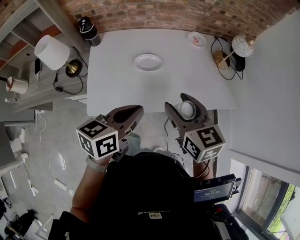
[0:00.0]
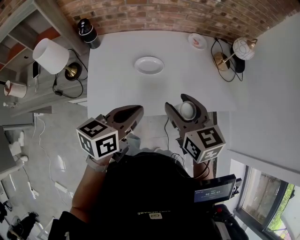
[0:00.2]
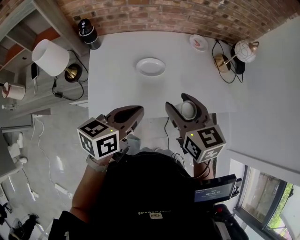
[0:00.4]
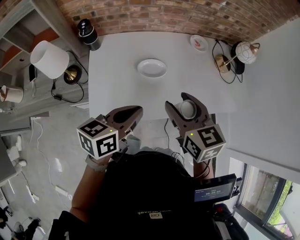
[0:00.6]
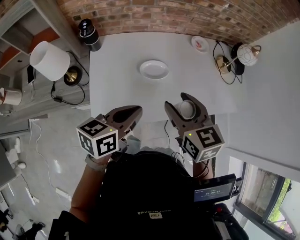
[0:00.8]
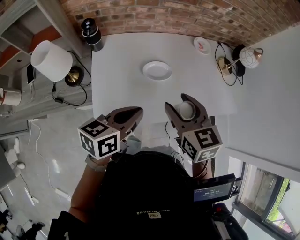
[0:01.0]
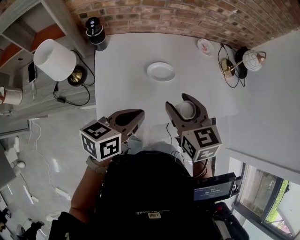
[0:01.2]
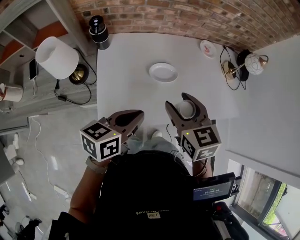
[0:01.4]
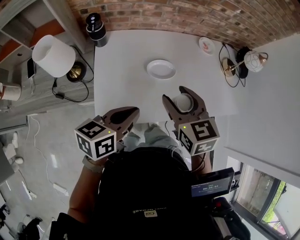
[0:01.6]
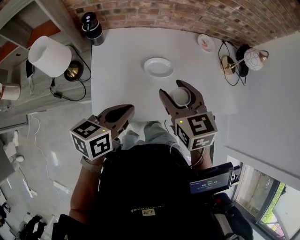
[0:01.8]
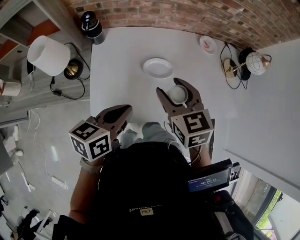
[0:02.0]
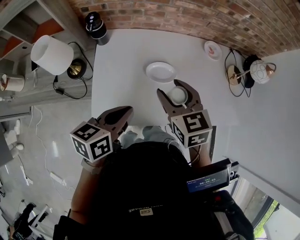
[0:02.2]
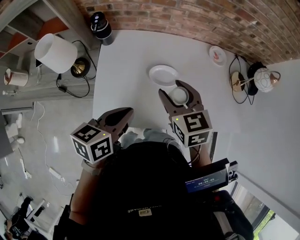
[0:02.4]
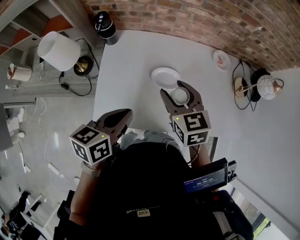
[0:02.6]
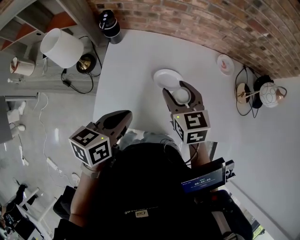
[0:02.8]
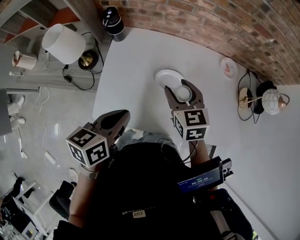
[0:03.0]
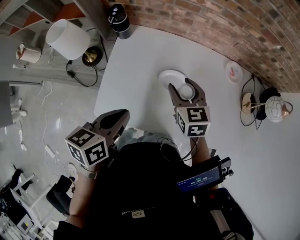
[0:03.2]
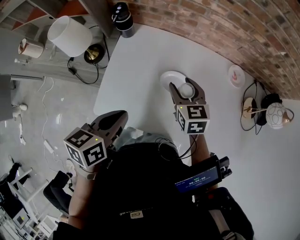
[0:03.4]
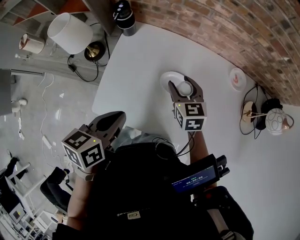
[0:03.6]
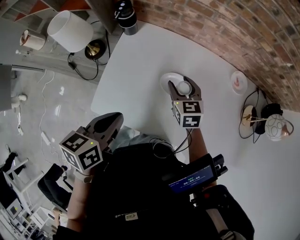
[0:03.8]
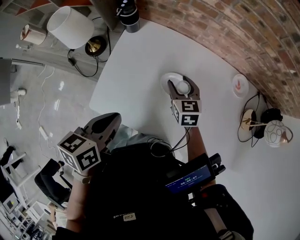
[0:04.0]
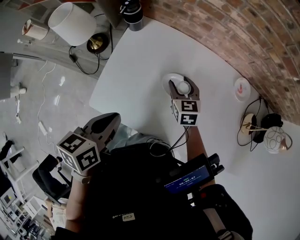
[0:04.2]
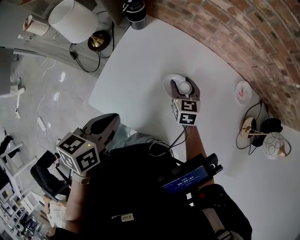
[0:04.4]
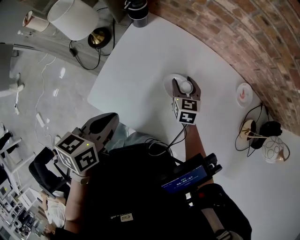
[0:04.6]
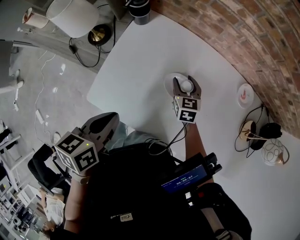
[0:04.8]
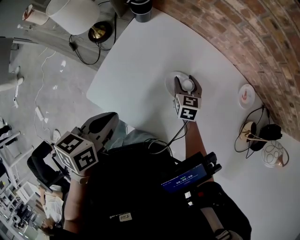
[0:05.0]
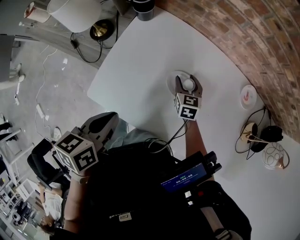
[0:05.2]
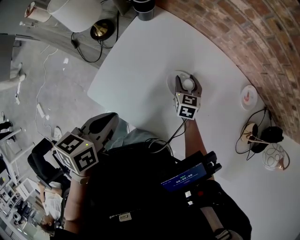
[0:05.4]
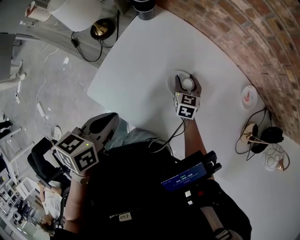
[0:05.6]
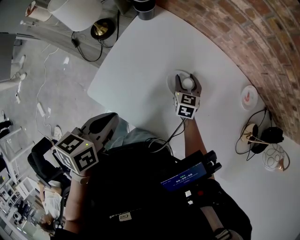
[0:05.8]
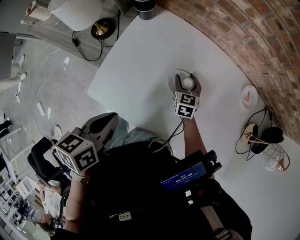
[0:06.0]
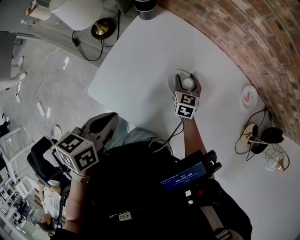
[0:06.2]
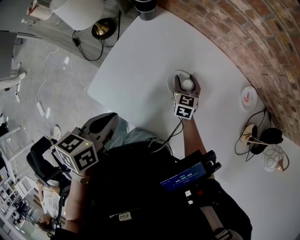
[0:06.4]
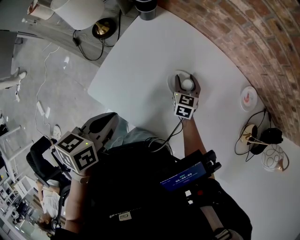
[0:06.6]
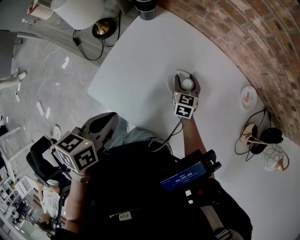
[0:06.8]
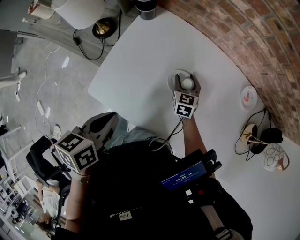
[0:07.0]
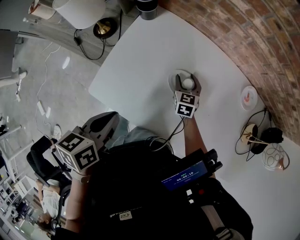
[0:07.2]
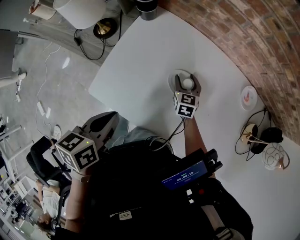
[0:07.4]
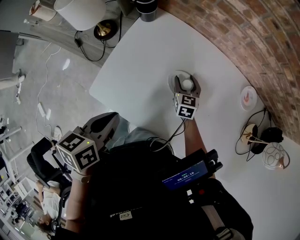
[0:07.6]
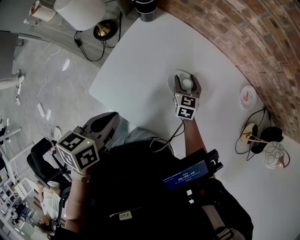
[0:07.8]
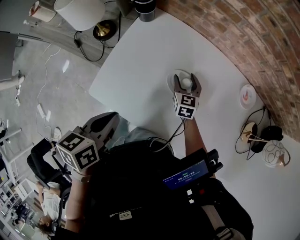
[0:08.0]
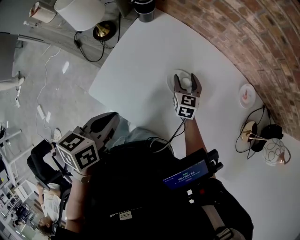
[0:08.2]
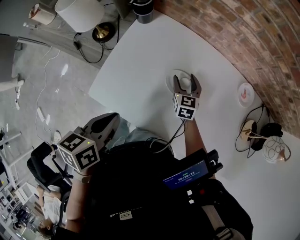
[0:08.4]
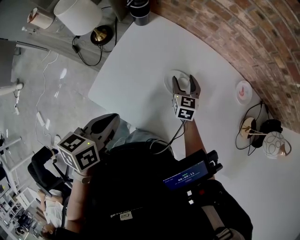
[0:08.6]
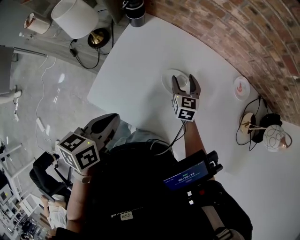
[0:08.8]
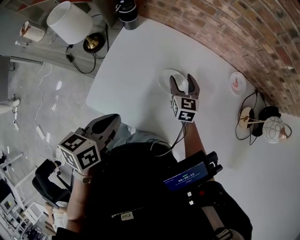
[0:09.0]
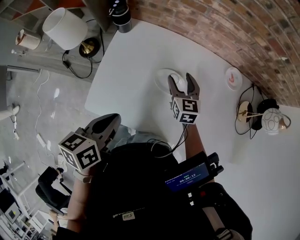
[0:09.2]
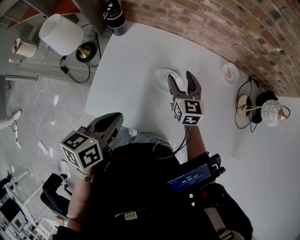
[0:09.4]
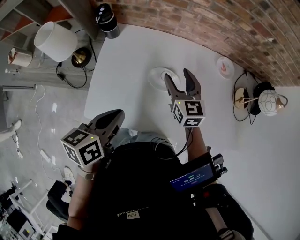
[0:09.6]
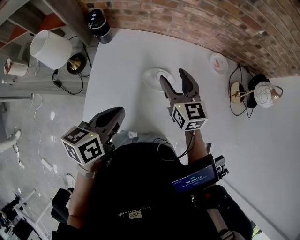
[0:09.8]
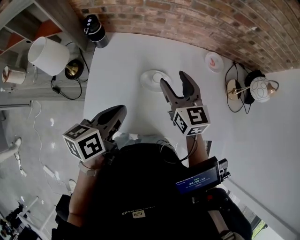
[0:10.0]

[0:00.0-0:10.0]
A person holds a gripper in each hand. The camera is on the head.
0:00.0 to 0:01.4: The left gripper travels to the left by about 15 cm; the right gripper is displaced to the left and forward by about 15 cm.
0:01.4 to 0:02.8: The left gripper rotates some 20 degrees. The right gripper travels forward and downward by roughly 10 cm.
0:02.8 to 0:04.2: The right gripper goes some 20 cm downward and forward; the left gripper turns by some 20 degrees.
0:04.2 to 0:05.8: The right gripper travels downward by about 10 cm.
0:05.8 to 0:07.2: Neither gripper changes place.
0:07.2 to 0:08.6: The grippers stay close to where they were, moving slightly.
0:08.6 to 0:10.0: The left gripper travels forward by roughly 5 cm, and changes its angle by about 20 degrees, while the right gripper moves upward, some 20 cm.

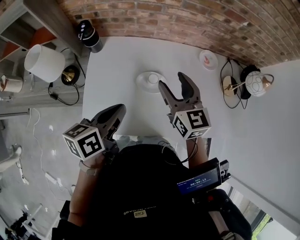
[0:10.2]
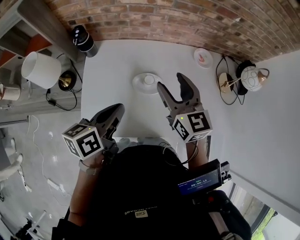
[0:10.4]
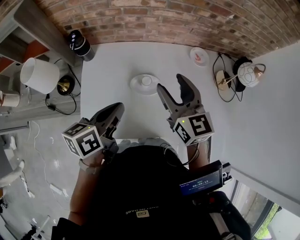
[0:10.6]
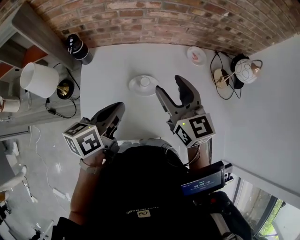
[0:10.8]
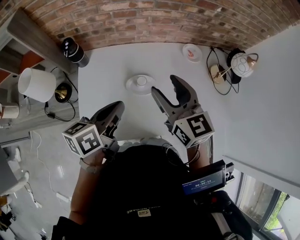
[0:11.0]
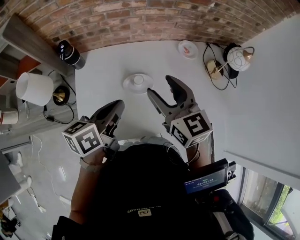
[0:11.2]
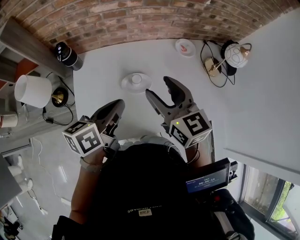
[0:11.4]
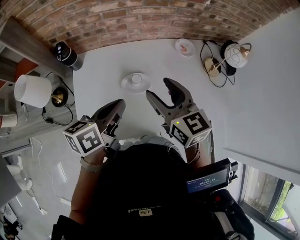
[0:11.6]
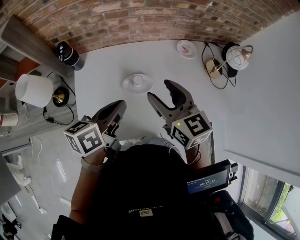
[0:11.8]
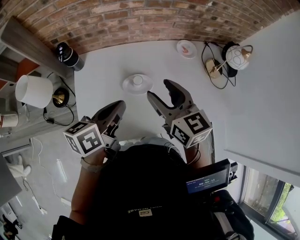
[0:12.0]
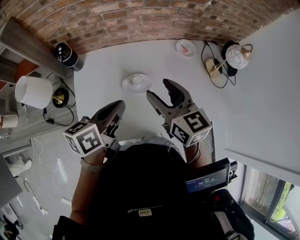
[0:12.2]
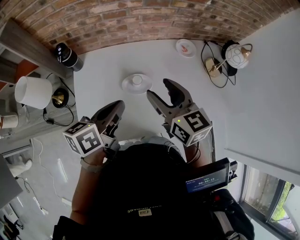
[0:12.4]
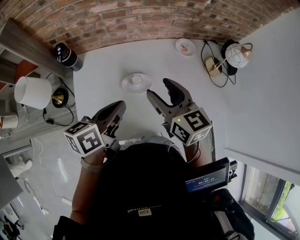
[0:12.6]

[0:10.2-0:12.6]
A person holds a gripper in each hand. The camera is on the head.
0:10.2 to 0:11.4: The right gripper is displaced backward by approximately 5 cm, while the left gripper changes place by roughly 5 cm.
0:11.4 to 0:12.6: The grippers make only small movements.

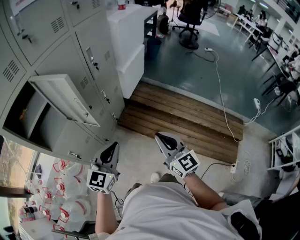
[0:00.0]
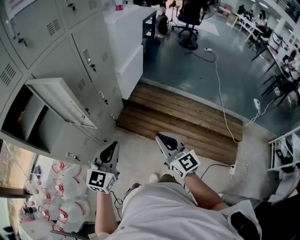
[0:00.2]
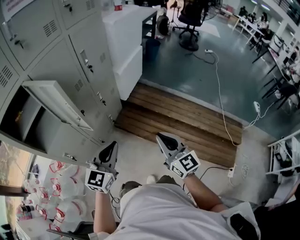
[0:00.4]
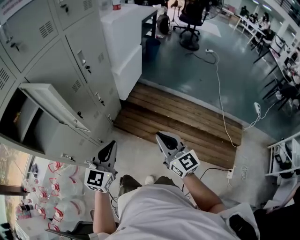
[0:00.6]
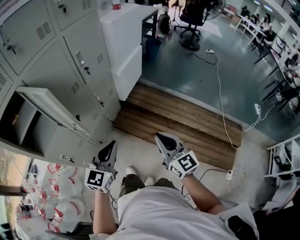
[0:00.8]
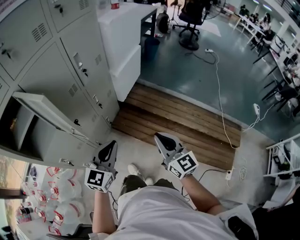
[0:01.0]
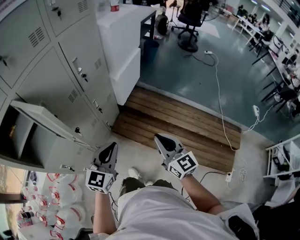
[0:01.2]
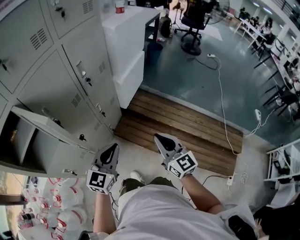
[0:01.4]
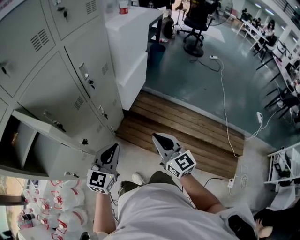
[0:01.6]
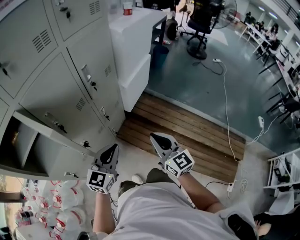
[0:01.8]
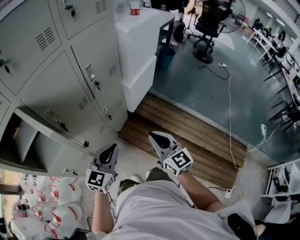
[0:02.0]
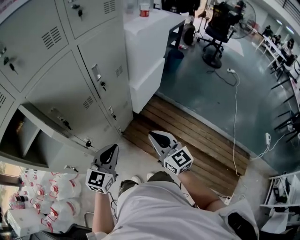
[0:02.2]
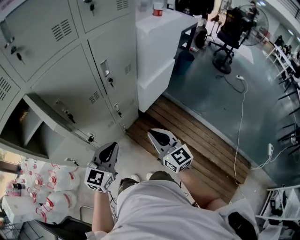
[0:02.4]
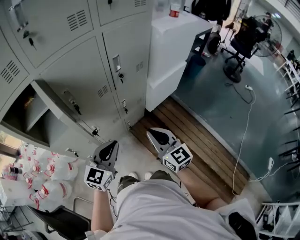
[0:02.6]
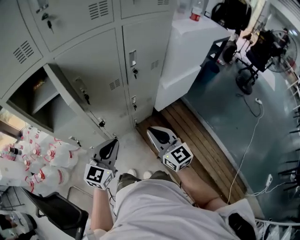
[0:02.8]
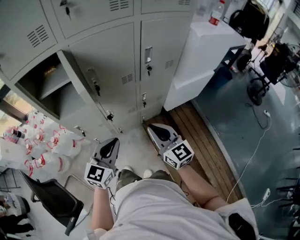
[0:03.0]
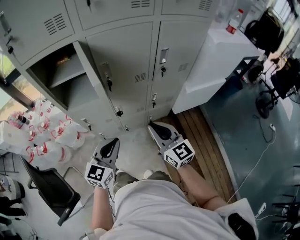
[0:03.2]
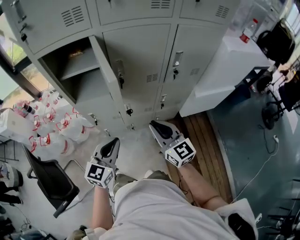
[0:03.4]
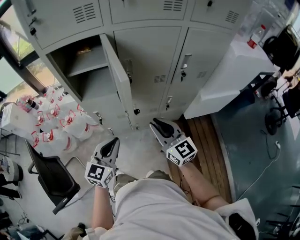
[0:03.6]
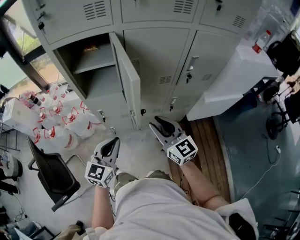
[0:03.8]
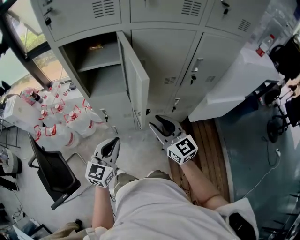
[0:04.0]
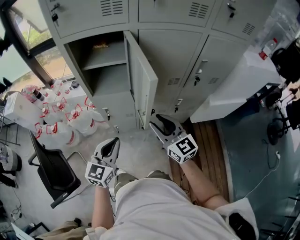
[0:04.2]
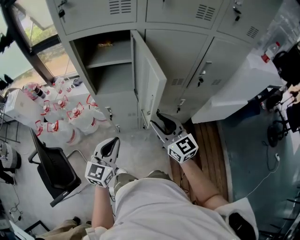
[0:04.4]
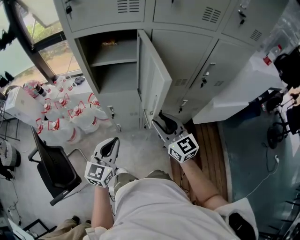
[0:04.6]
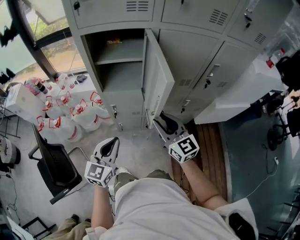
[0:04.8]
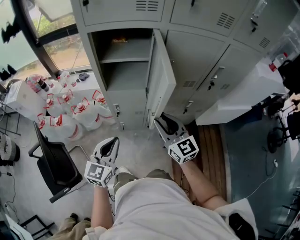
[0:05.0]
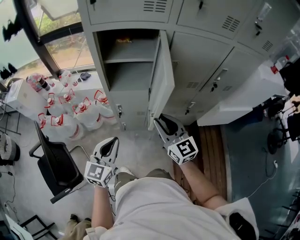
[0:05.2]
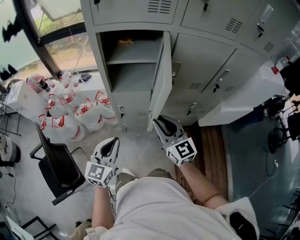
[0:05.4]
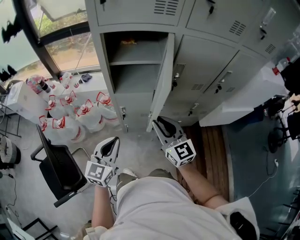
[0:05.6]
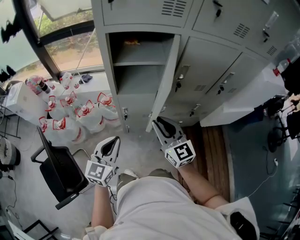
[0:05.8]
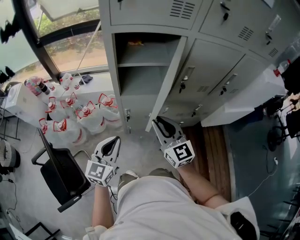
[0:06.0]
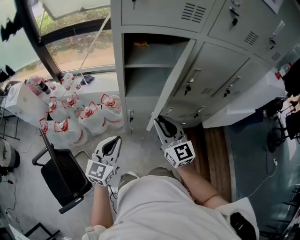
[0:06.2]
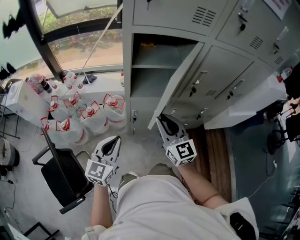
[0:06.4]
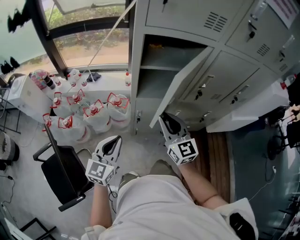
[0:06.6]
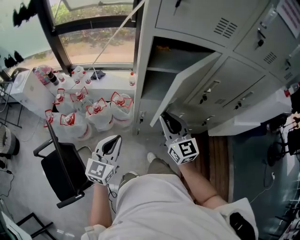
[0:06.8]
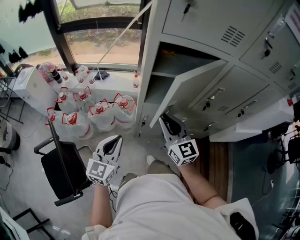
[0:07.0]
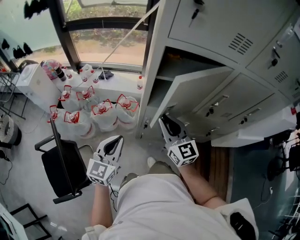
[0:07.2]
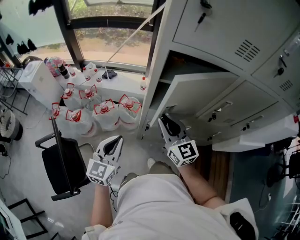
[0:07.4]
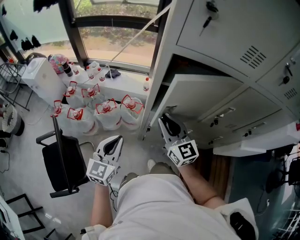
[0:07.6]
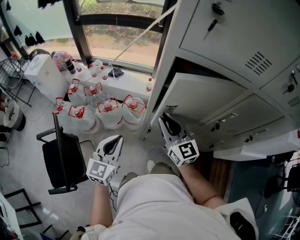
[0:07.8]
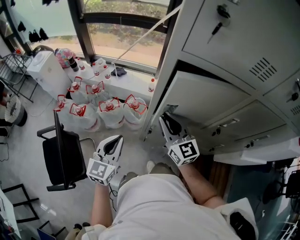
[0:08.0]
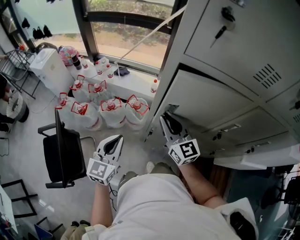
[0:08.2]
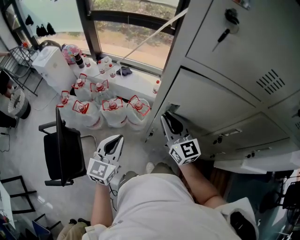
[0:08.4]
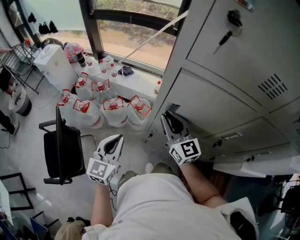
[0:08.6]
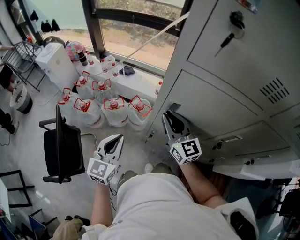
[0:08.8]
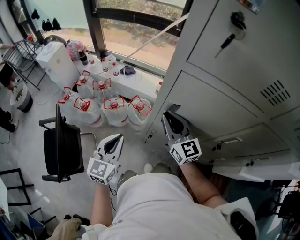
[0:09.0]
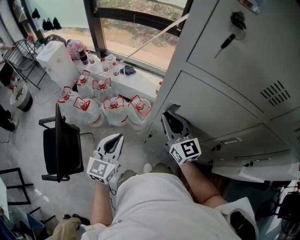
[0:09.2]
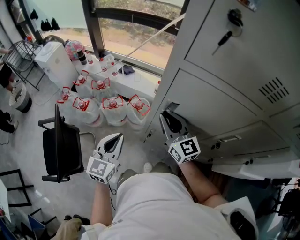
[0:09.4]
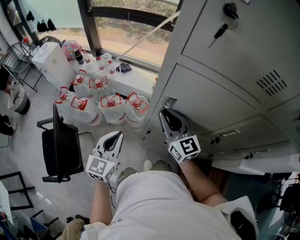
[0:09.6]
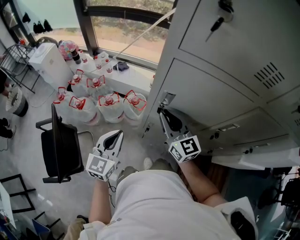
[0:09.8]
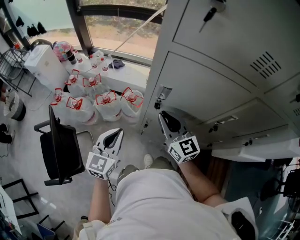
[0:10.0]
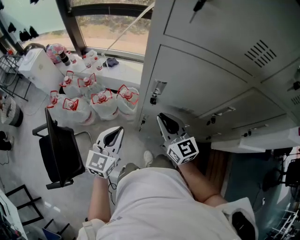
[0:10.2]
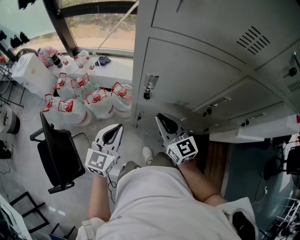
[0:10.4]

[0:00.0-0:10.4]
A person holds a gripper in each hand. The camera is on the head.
0:00.0 to 0:01.4: The two grippers go approximately 15 cm forward.
0:01.4 to 0:03.0: The left gripper ends up some 10 cm from where it was, and rotates approximately 40 degrees. The right gripper ends up roughly 15 cm from where it was, and changes its angle by approximately 40 degrees.
0:03.0 to 0:04.4: The two grippers go about 15 cm to the left. The right gripper opens up, while the left gripper rotates approximately 20 degrees.
0:04.4 to 0:06.0: The two grippers go approximately 15 cm to the left.
0:06.0 to 0:07.4: The left gripper goes about 10 cm to the left and forward; the right gripper heads forward and to the left, covering some 15 cm.
0:07.4 to 0:09.0: The right gripper shifts about 10 cm forward. Meanwhile the left gripper shifts approximately 5 cm forward.
0:09.0 to 0:10.4: The left gripper ends up about 5 cm from where it was. Meanwhile the right gripper moves backward, roughly 10 cm.

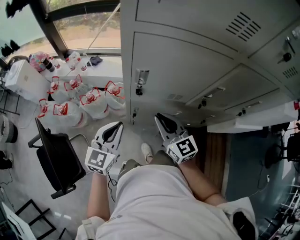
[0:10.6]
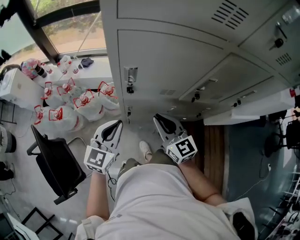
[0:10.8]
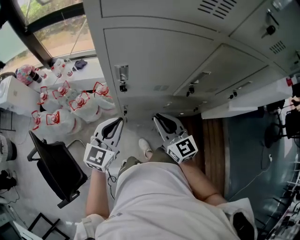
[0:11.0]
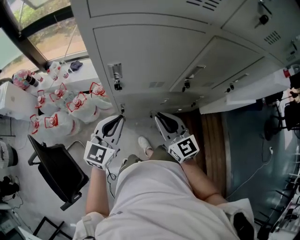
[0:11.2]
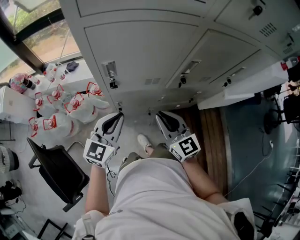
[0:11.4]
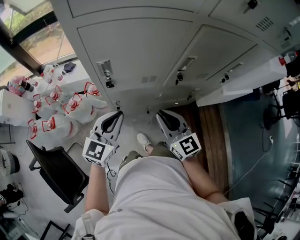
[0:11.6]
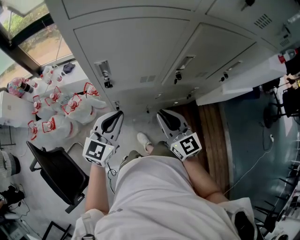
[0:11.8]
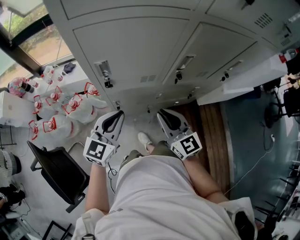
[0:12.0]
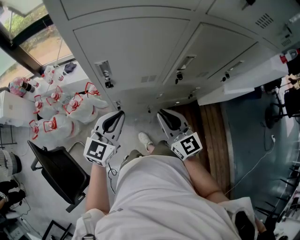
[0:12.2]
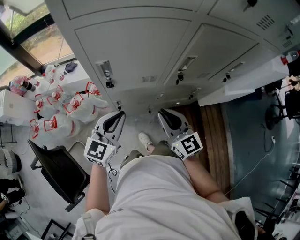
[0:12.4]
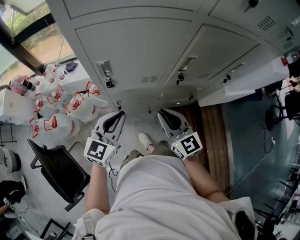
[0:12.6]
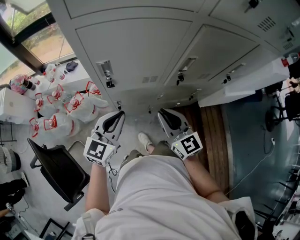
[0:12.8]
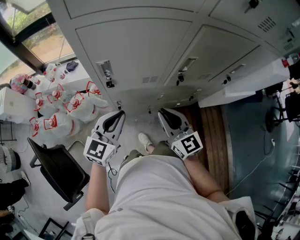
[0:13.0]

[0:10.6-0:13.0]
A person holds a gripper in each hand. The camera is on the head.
0:10.6 to 0:11.8: The right gripper heads to the right and backward, covering roughly 10 cm; the left gripper is displaced to the right by approximately 10 cm.
0:11.8 to 0:13.0: Neither gripper changes place.
